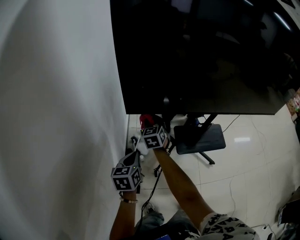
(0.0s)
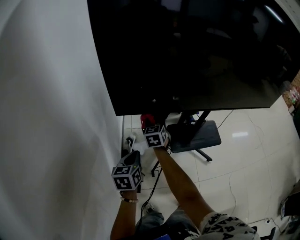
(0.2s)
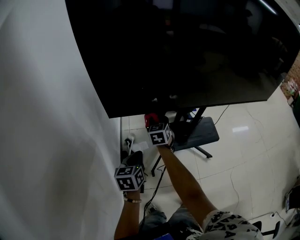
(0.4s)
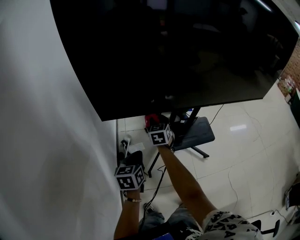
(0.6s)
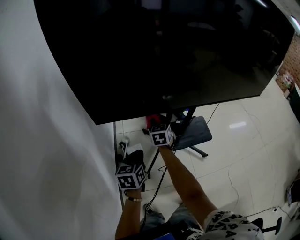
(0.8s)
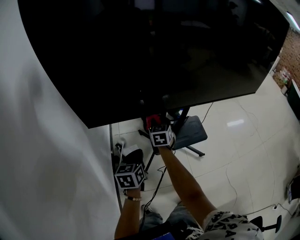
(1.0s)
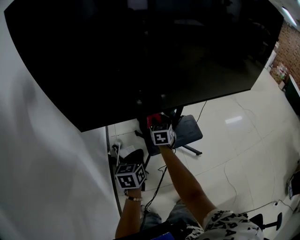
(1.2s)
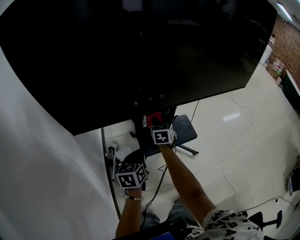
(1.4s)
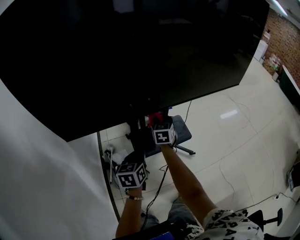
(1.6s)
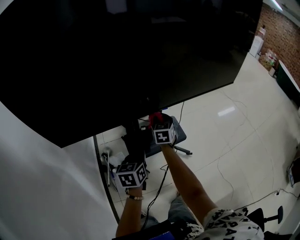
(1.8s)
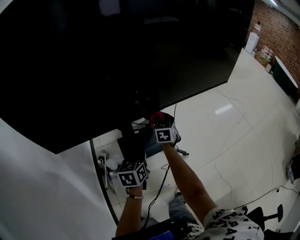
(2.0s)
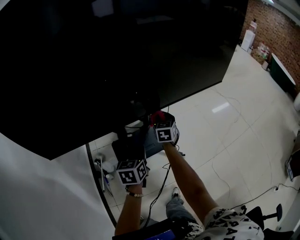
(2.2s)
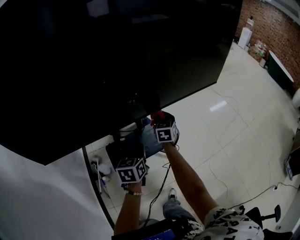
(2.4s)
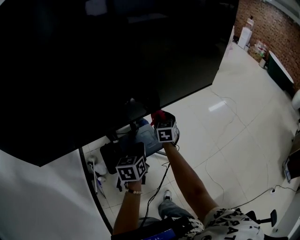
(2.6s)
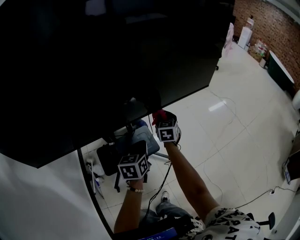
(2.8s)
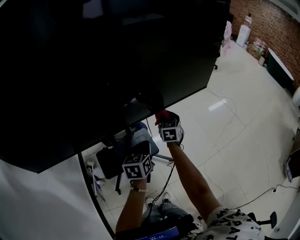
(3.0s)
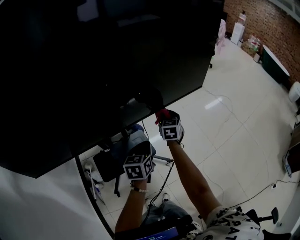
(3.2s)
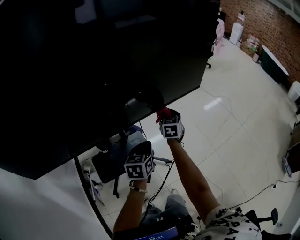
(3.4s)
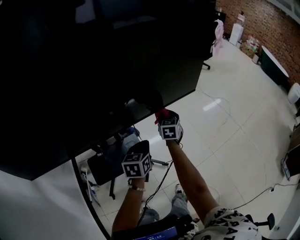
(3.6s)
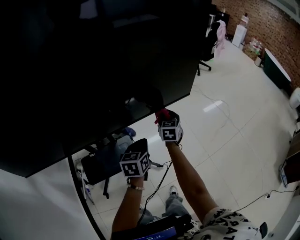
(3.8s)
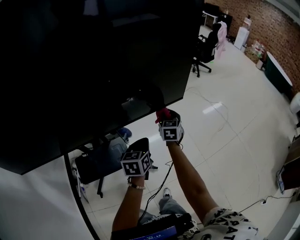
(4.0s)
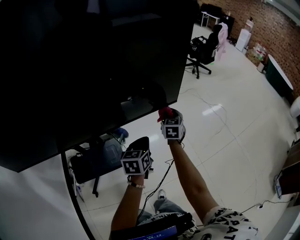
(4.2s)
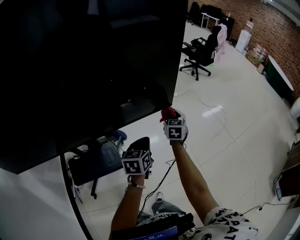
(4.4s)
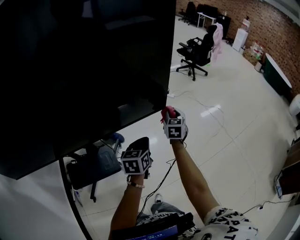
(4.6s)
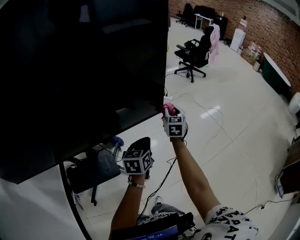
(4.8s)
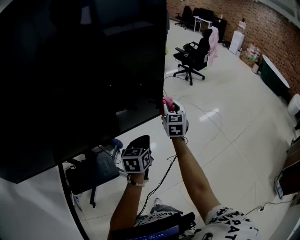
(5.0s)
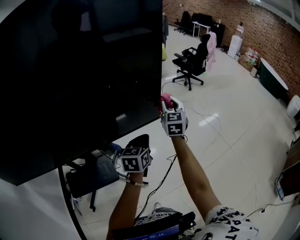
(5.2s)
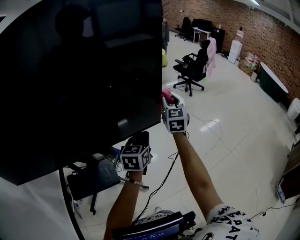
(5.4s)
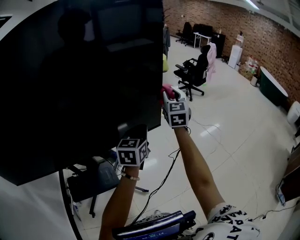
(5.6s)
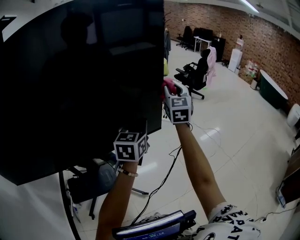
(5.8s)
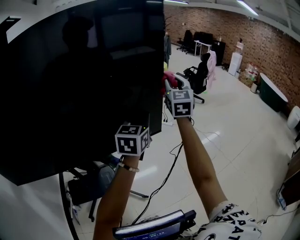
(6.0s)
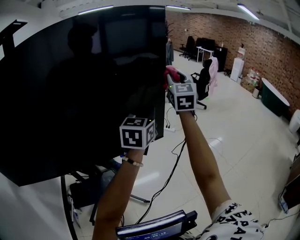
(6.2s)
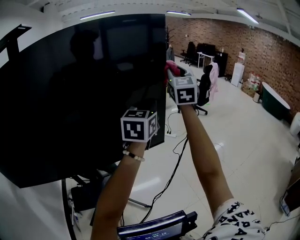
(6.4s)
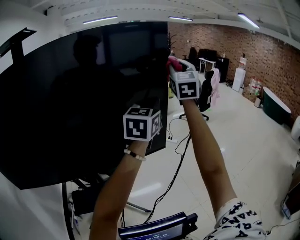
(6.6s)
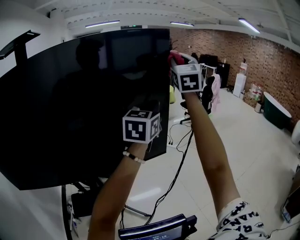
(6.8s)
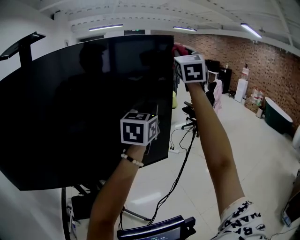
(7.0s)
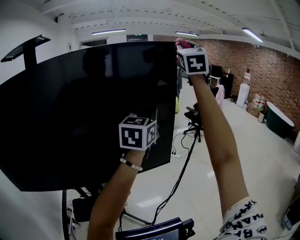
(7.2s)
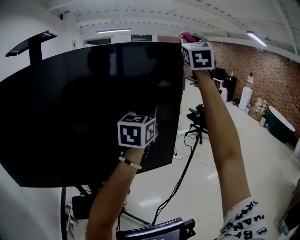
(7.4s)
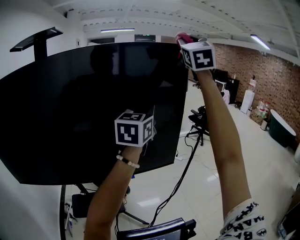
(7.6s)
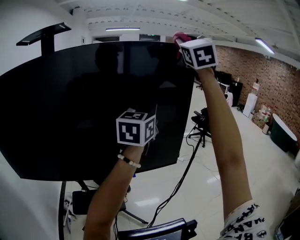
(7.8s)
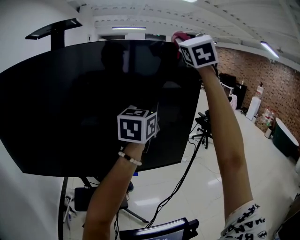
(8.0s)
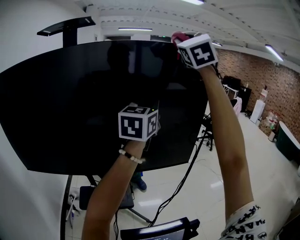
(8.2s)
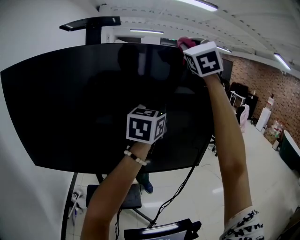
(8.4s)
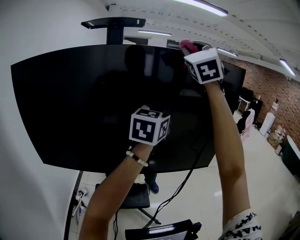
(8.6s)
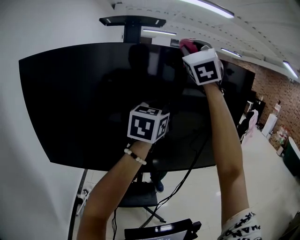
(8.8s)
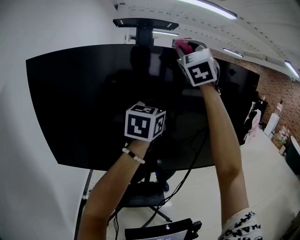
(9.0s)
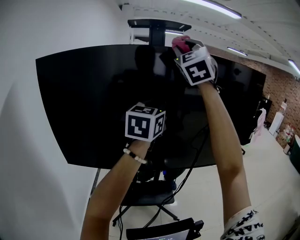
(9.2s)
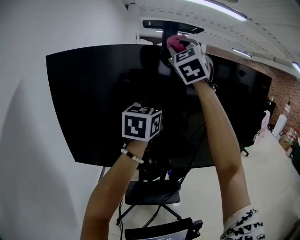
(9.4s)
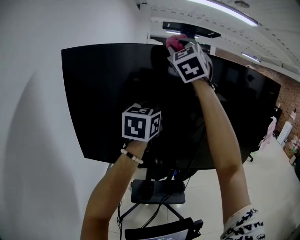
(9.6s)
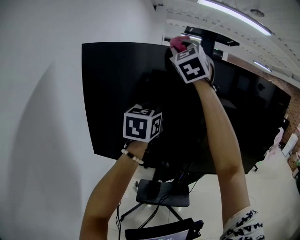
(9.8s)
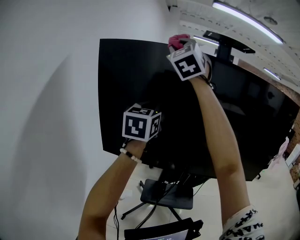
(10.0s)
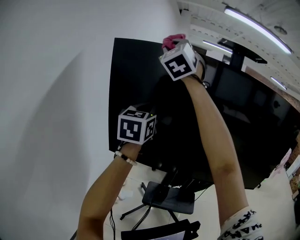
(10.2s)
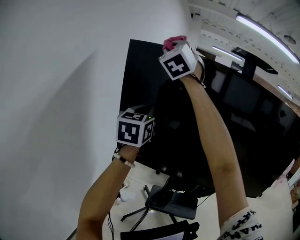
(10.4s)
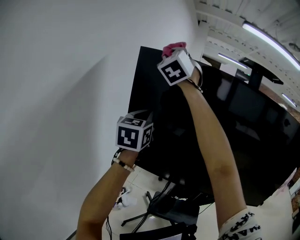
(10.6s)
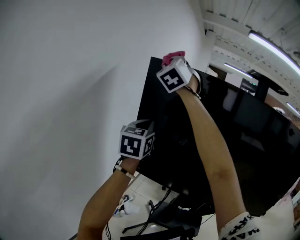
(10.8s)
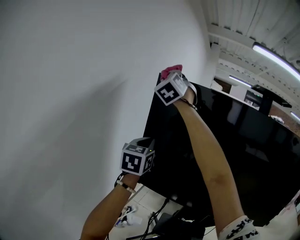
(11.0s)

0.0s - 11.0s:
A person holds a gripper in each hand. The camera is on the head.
0.0s - 1.6s: Both grippers travel together to the right, approximately 40 cm. The right gripper turns by about 30 degrees.
1.6s - 3.2s: Both grippers move to the right and forward, approximately 35 cm.
3.2s - 4.8s: The grippers both shift to the right and forward by some 30 cm.
4.8s - 6.2s: Both grippers move upward, some 35 cm. The left gripper swivels about 30 degrees; the right gripper turns by approximately 30 degrees.
6.2s - 7.8s: The right gripper is displaced upward by roughly 30 cm, and swivels some 20 degrees, while the left gripper travels upward and to the left by roughly 15 cm.
7.8s - 9.4s: The two grippers travel together, to the left, some 50 cm.
9.4s - 11.0s: The two grippers travel together, to the left, roughly 50 cm. The left gripper swivels roughly 30 degrees; the right gripper changes its angle by roughly 20 degrees.

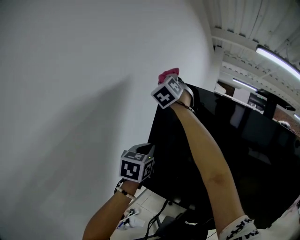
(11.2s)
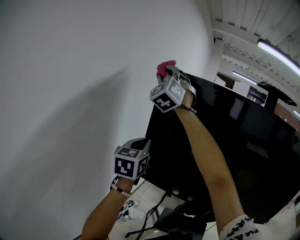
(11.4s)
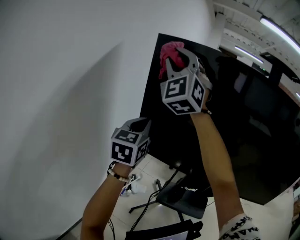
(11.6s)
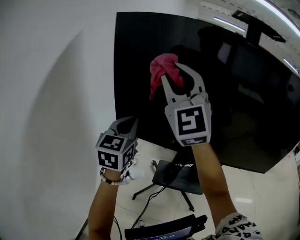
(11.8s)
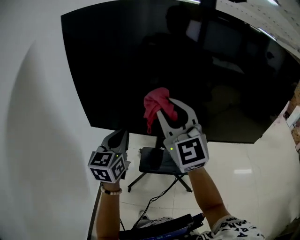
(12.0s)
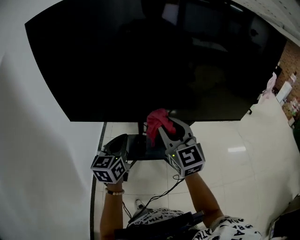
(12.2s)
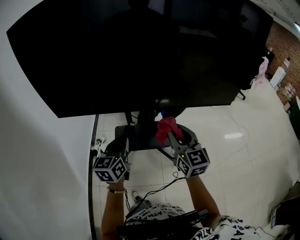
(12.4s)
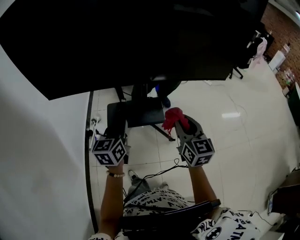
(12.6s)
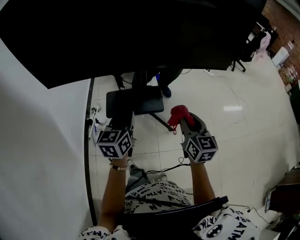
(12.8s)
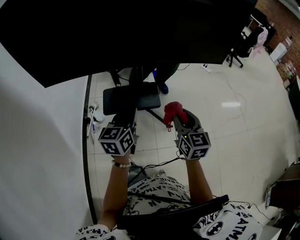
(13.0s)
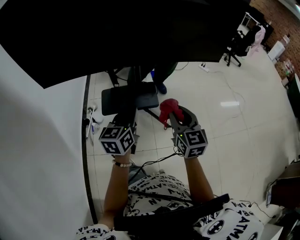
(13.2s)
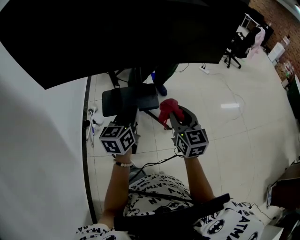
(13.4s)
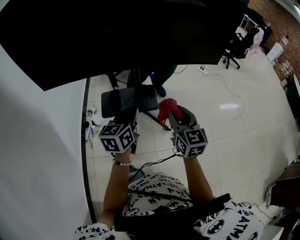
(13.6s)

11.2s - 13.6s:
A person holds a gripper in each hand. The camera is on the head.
11.2s - 12.4s: The pair of grippers is taken some 60 cm. The left gripper changes its angle by approximately 30 degrees. Meanwhile the right gripper rotates around the line of its fingers by some 60 degrees, clockwise from behind.
12.4s - 13.6s: The left gripper travels to the right by some 15 cm; the right gripper shifts roughly 15 cm to the right, backward and downward.

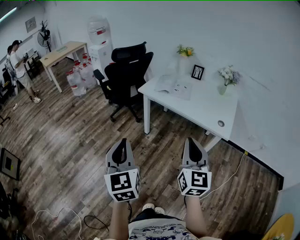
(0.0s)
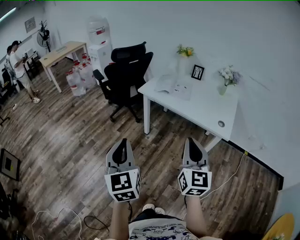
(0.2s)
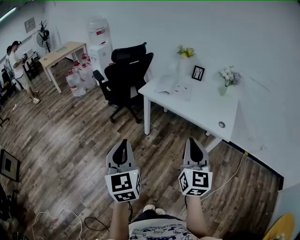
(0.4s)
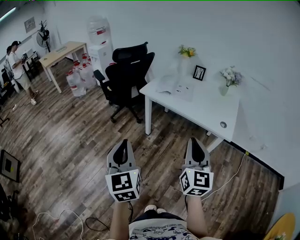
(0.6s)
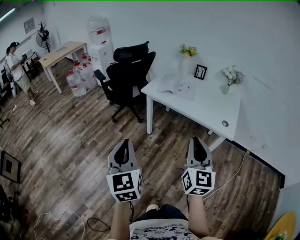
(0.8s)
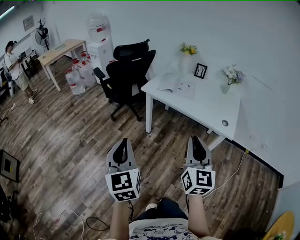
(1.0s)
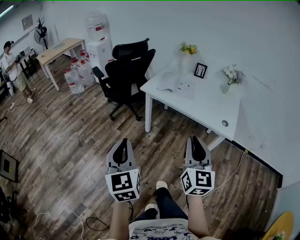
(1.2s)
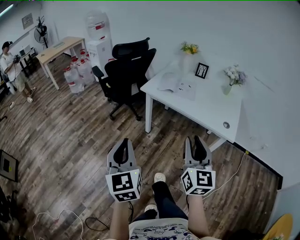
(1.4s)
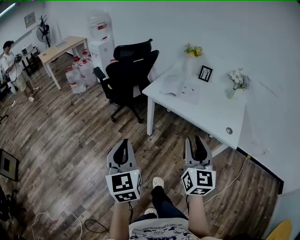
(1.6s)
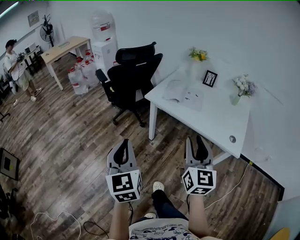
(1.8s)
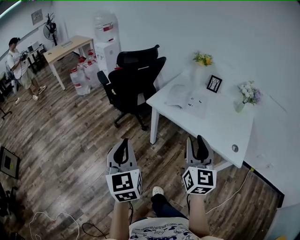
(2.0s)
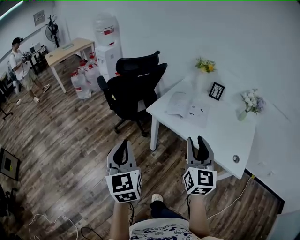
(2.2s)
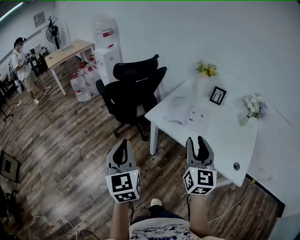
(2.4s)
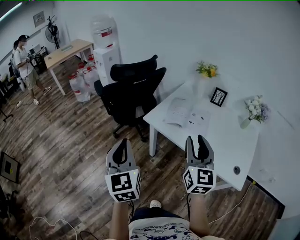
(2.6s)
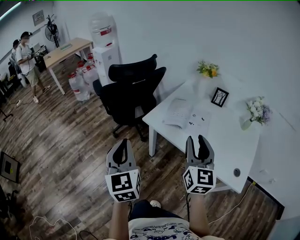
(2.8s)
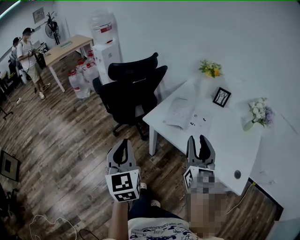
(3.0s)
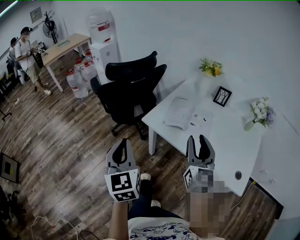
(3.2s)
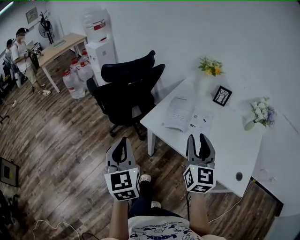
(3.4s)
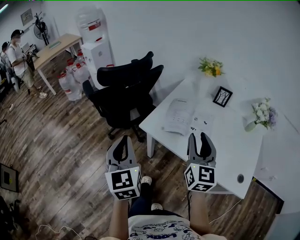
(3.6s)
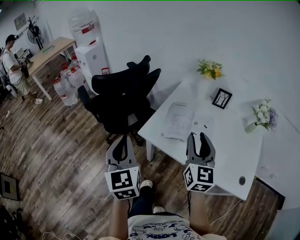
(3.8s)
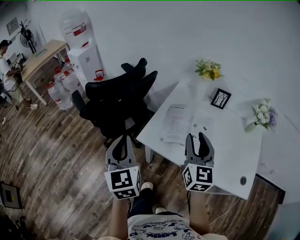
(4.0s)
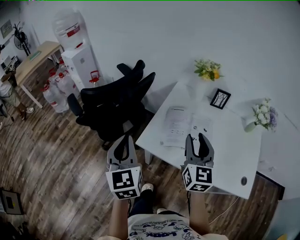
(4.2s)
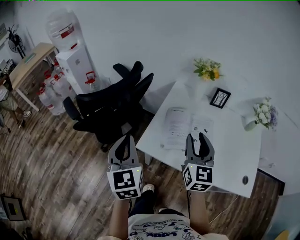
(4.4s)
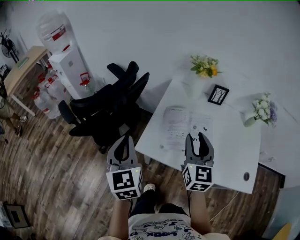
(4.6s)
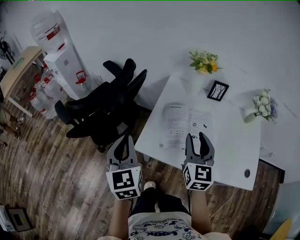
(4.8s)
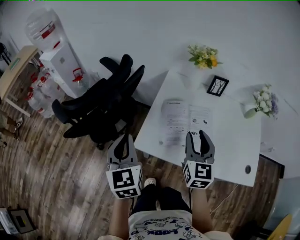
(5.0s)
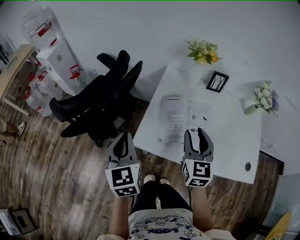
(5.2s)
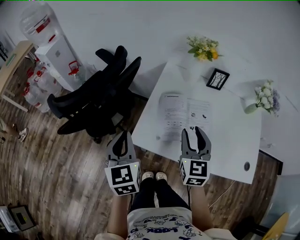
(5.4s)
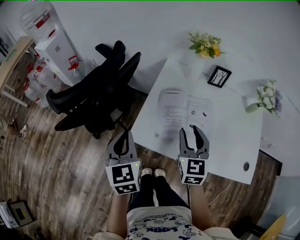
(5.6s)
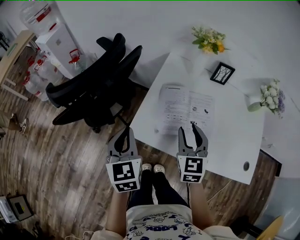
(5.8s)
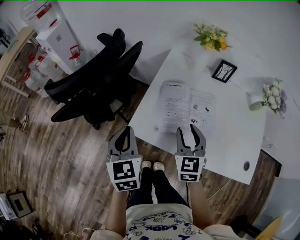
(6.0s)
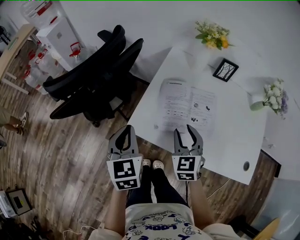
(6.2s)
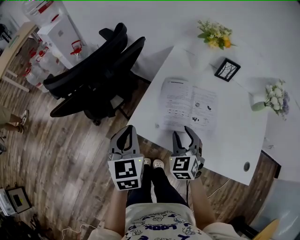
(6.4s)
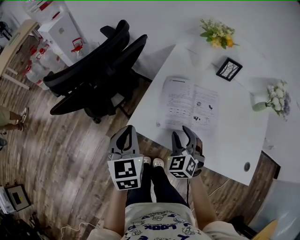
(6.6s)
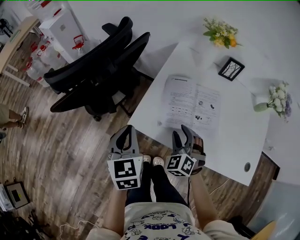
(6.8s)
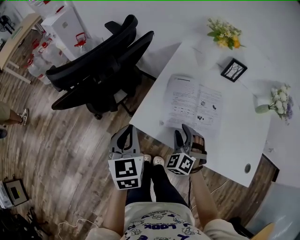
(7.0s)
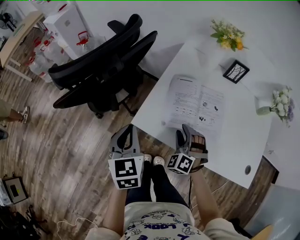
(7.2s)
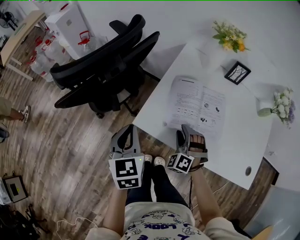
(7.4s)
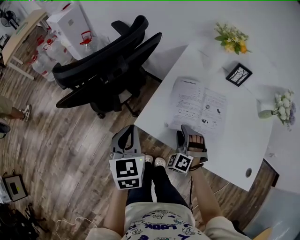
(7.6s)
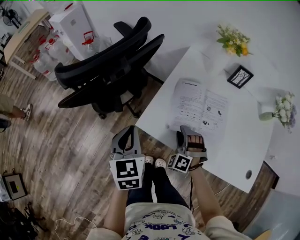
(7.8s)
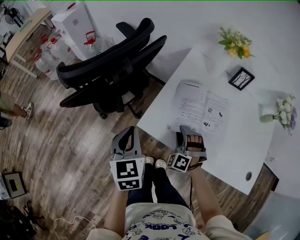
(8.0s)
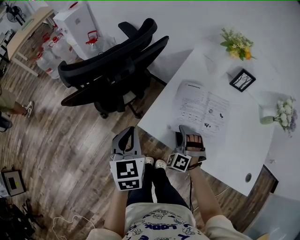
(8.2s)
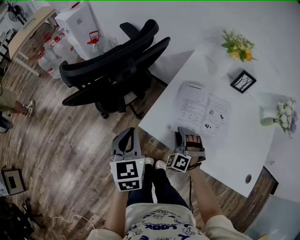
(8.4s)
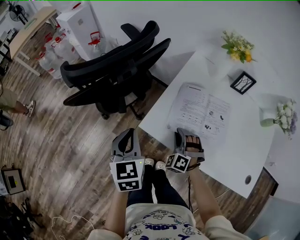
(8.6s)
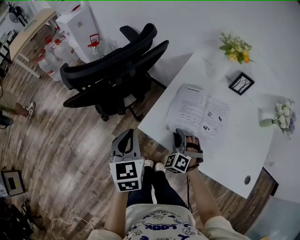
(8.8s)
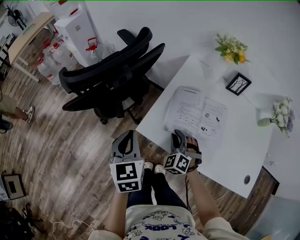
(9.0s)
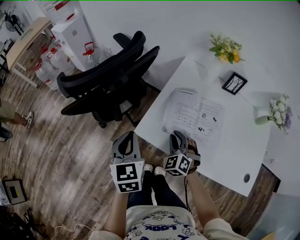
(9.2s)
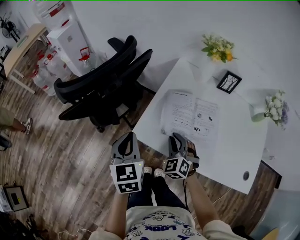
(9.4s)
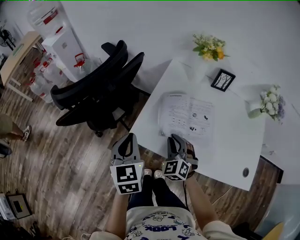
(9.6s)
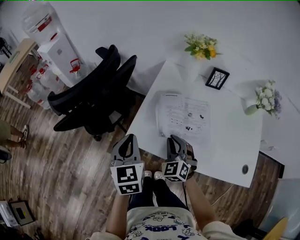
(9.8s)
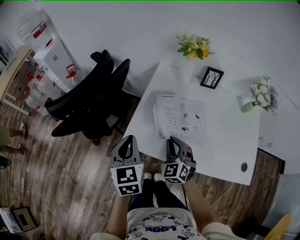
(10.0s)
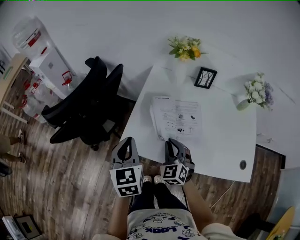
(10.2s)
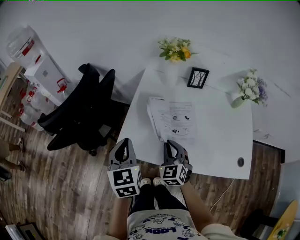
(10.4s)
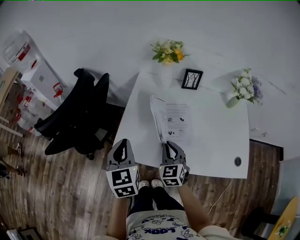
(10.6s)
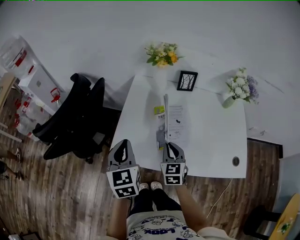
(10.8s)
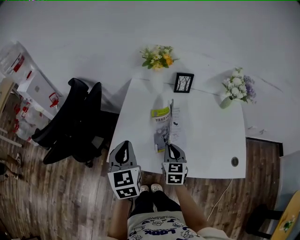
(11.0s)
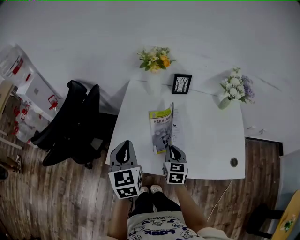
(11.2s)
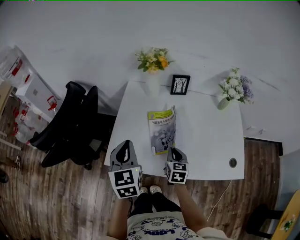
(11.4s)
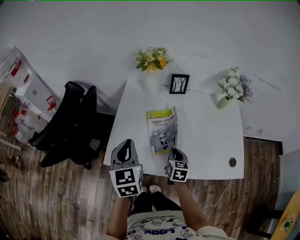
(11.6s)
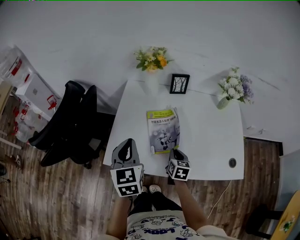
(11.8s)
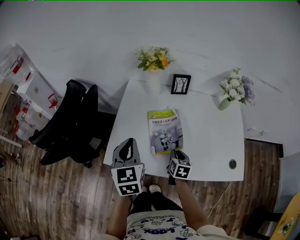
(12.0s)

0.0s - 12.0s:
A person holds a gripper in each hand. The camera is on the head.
0.0s - 1.6s: Both grippers move forward, approximately 10 cm. The right gripper opens.
1.6s - 3.0s: The grippers both shift forward by approximately 30 cm.
3.0s - 4.4s: The two grippers go roughly 25 cm forward.
4.4s - 6.0s: Both grippers travel together downward, some 10 cm. The right gripper changes its angle by approximately 20 degrees.
6.0s - 7.6s: The right gripper shifts about 15 cm downward, and rotates around the line of its fingers by approximately 60 degrees, counterclockwise from behind.
7.6s - 9.0s: The right gripper closes up.
9.0s - 10.4s: The right gripper heads to the right and upward, covering roughly 10 cm, and turns by approximately 40 degrees. Meanwhile the left gripper is displaced to the right by roughly 10 cm.
10.4s - 12.0s: The right gripper is displaced to the right and downward by some 15 cm, and rotates around the line of its fingers by some 50 degrees, clockwise from behind. The left gripper is displaced to the right by some 10 cm.
